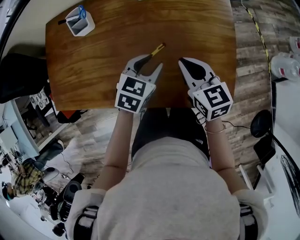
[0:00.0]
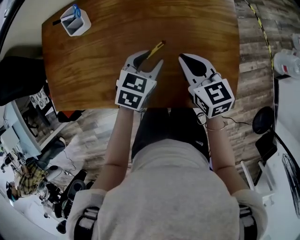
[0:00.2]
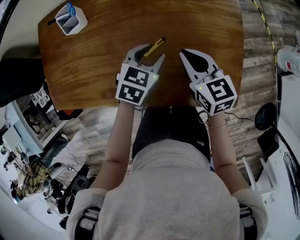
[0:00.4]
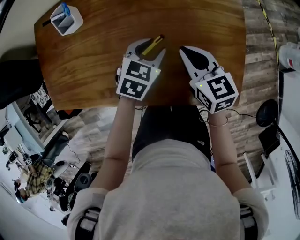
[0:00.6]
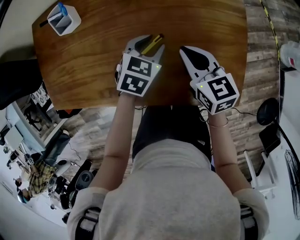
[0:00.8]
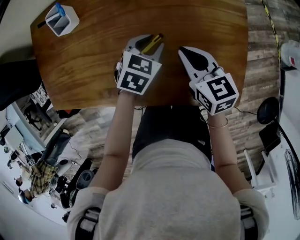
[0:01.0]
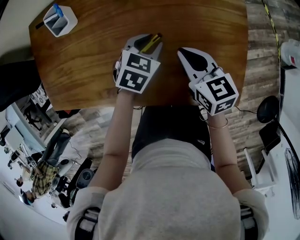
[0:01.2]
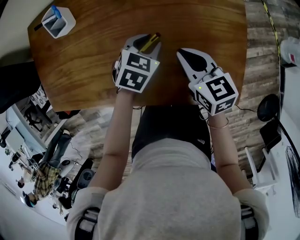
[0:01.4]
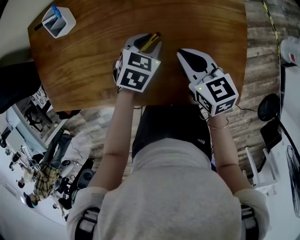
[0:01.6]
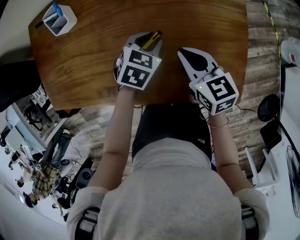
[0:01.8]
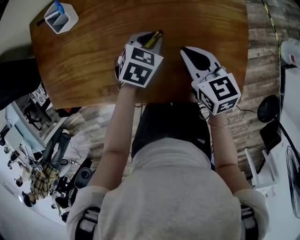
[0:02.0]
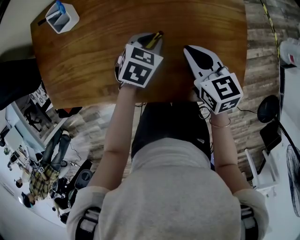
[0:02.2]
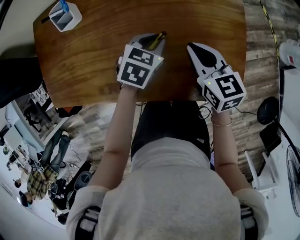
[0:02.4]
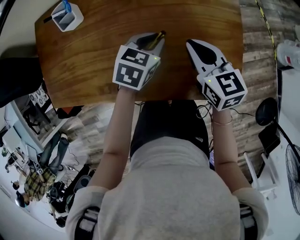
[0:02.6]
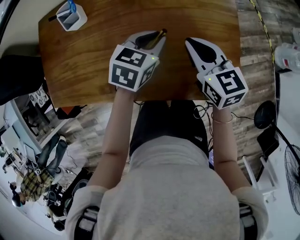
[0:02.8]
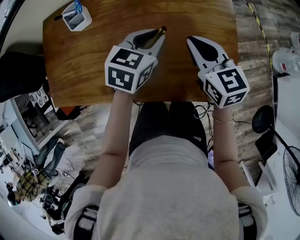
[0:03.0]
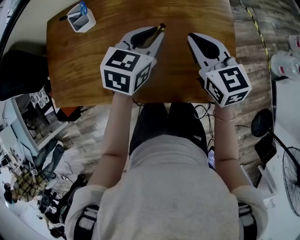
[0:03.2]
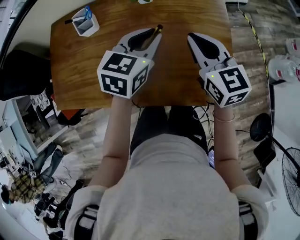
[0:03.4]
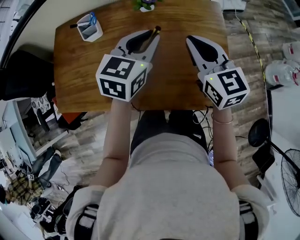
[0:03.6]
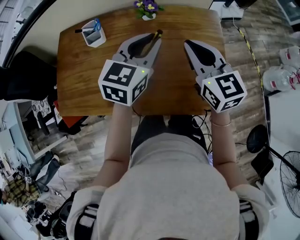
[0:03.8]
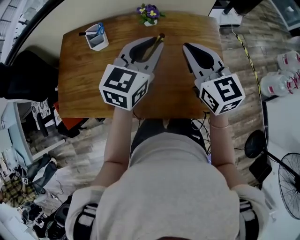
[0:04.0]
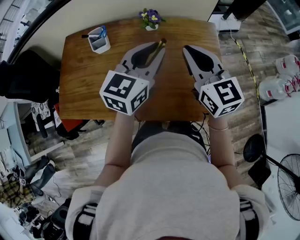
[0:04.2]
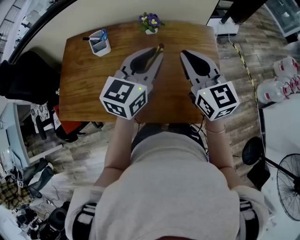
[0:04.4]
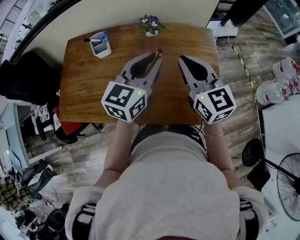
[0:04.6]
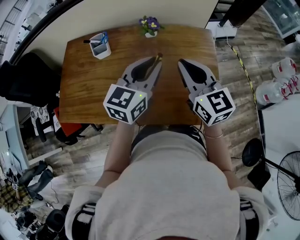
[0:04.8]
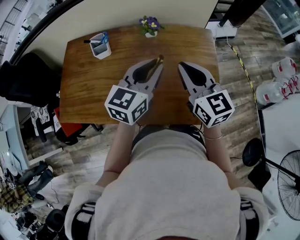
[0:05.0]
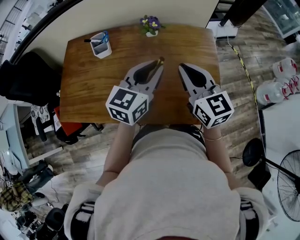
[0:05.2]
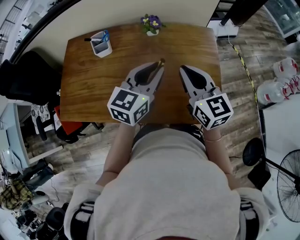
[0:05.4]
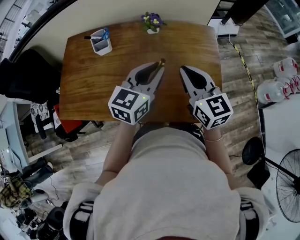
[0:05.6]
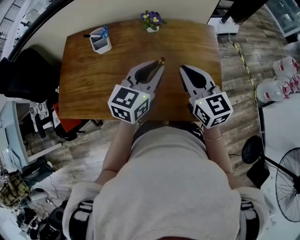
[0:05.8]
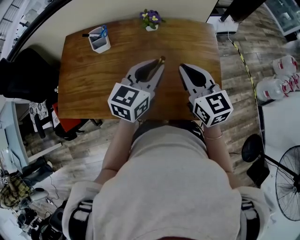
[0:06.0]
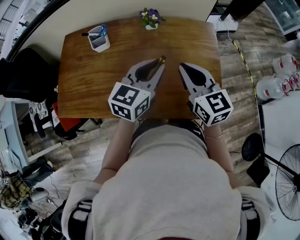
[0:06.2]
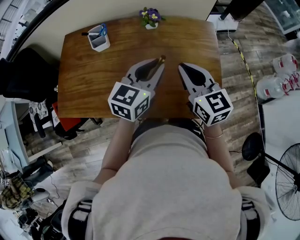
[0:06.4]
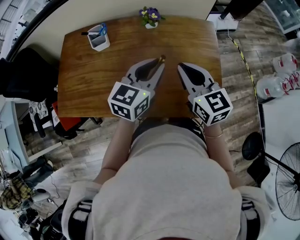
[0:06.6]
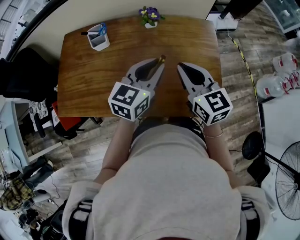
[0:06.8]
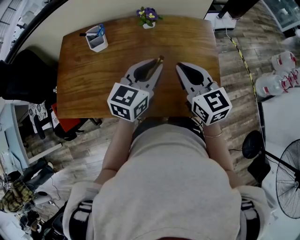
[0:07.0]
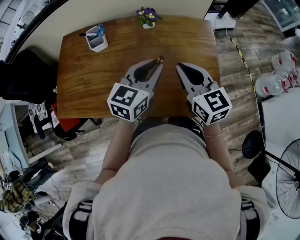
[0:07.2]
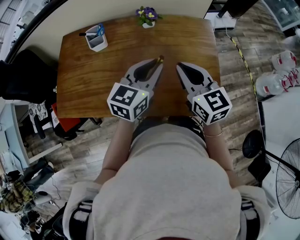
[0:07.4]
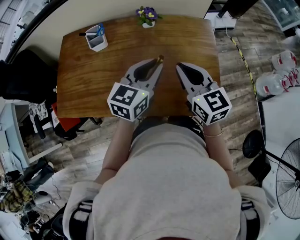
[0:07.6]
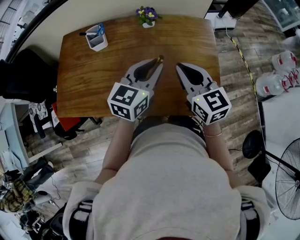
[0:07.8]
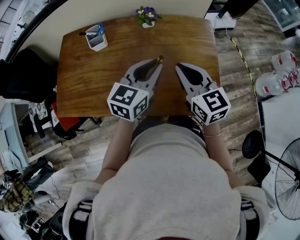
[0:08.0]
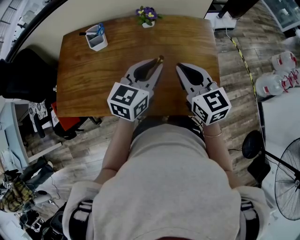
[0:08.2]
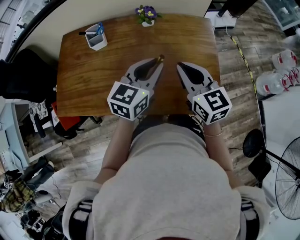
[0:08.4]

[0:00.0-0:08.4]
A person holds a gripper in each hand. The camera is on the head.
0:00.0 to 0:01.4: The grippers both shift downward by some 5 cm.
0:01.4 to 0:02.8: Both grippers move upward, some 10 cm.
0:02.8 to 0:04.2: Both grippers move upward, about 20 cm. The left gripper points its fingers about 30 degrees further upward. Meanwhile the right gripper rotates about 20 degrees.
0:04.2 to 0:05.6: The right gripper changes place by roughly 5 cm; the left gripper goes roughly 5 cm downward.
0:05.6 to 0:07.0: The grippers make only small movements.
0:07.0 to 0:08.4: The two grippers keep their place.

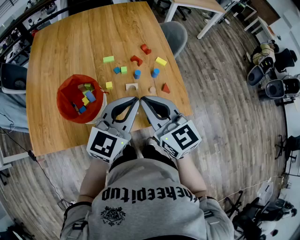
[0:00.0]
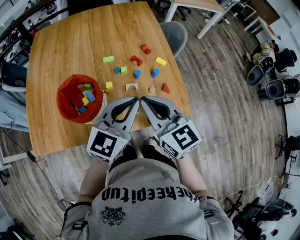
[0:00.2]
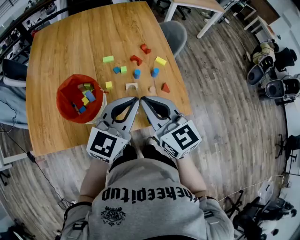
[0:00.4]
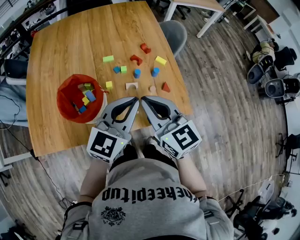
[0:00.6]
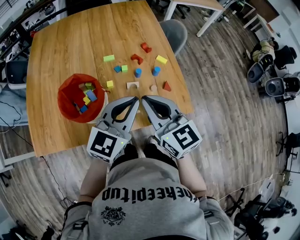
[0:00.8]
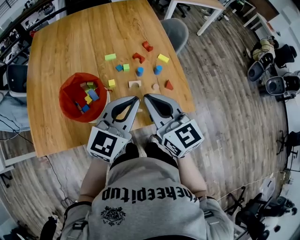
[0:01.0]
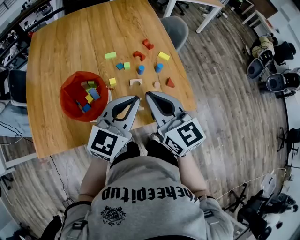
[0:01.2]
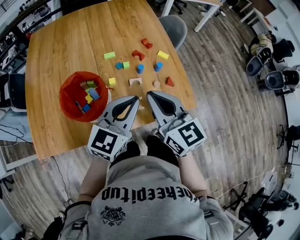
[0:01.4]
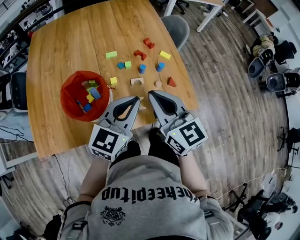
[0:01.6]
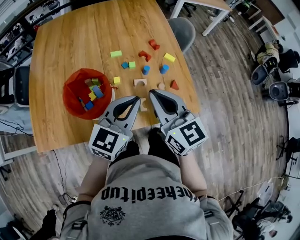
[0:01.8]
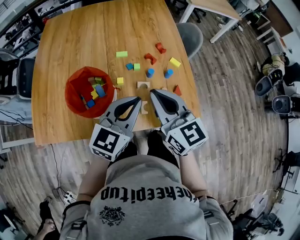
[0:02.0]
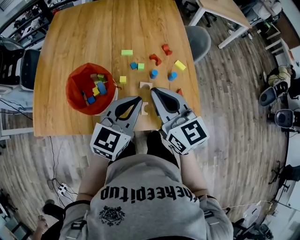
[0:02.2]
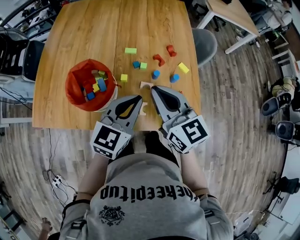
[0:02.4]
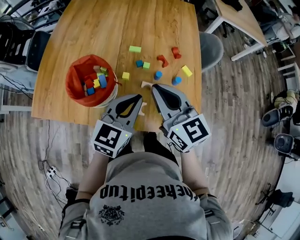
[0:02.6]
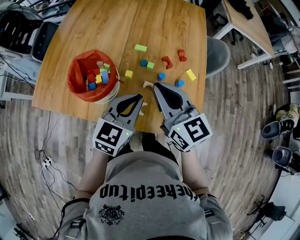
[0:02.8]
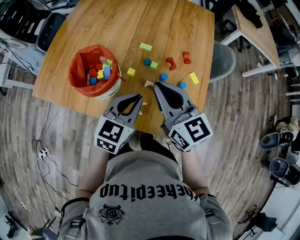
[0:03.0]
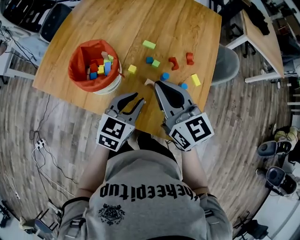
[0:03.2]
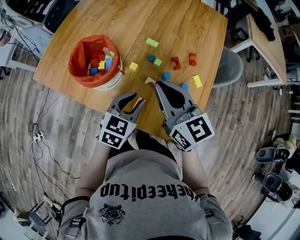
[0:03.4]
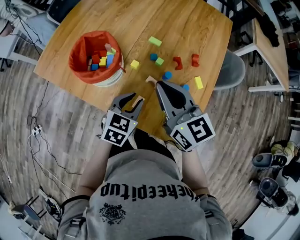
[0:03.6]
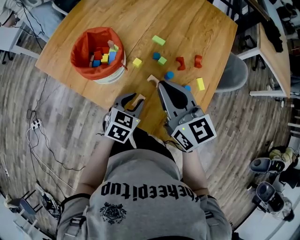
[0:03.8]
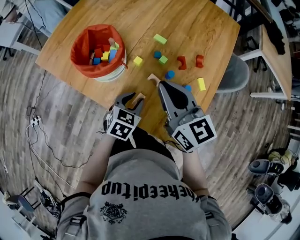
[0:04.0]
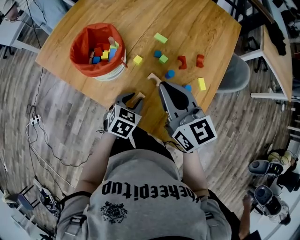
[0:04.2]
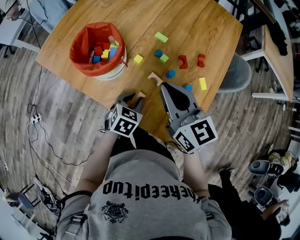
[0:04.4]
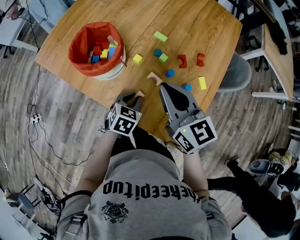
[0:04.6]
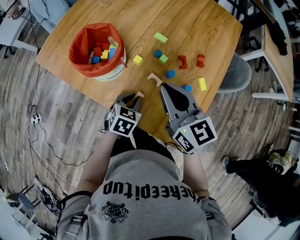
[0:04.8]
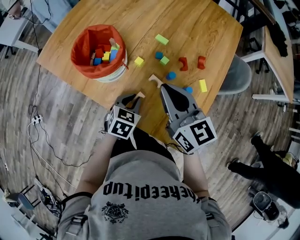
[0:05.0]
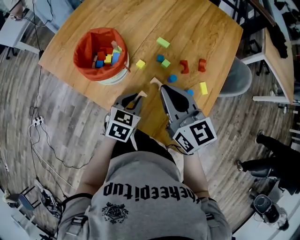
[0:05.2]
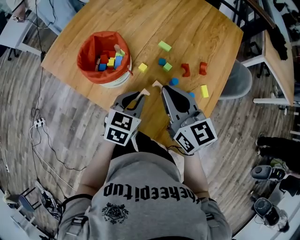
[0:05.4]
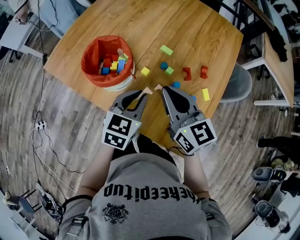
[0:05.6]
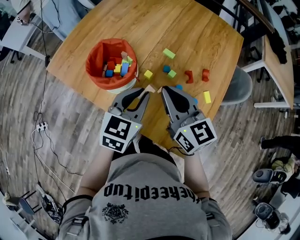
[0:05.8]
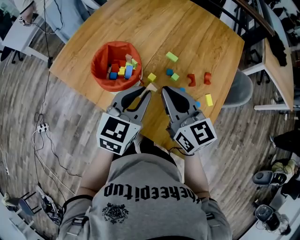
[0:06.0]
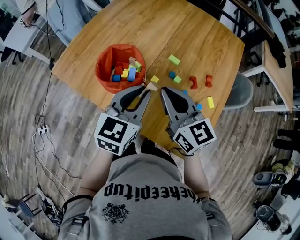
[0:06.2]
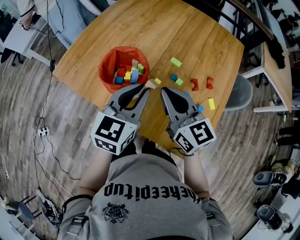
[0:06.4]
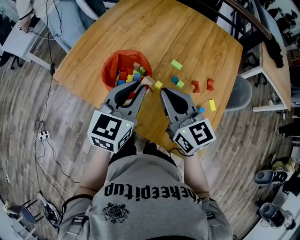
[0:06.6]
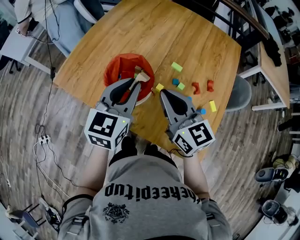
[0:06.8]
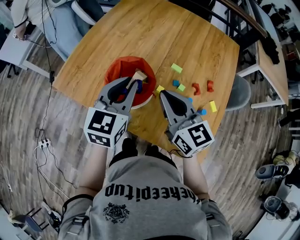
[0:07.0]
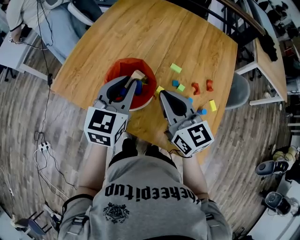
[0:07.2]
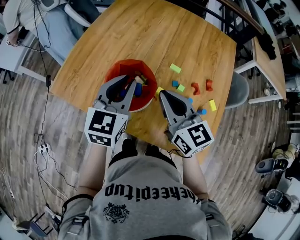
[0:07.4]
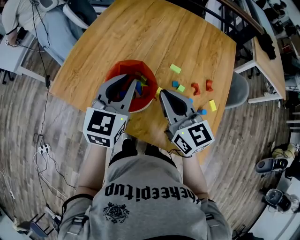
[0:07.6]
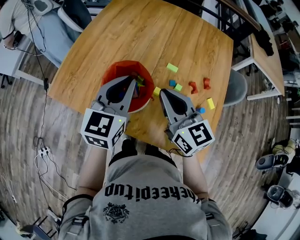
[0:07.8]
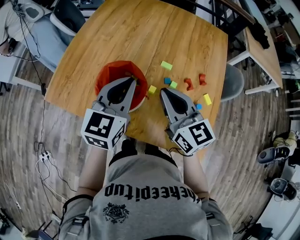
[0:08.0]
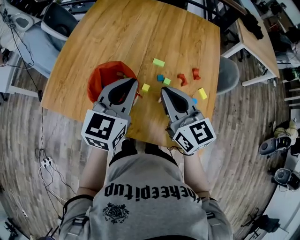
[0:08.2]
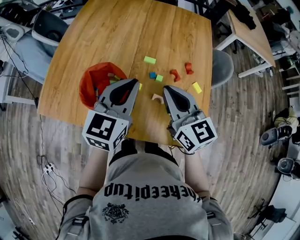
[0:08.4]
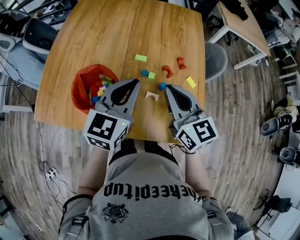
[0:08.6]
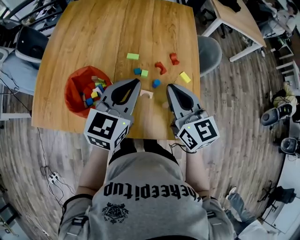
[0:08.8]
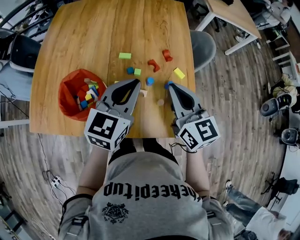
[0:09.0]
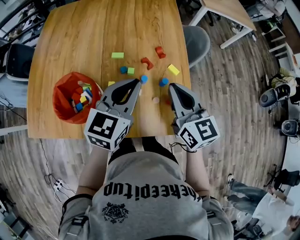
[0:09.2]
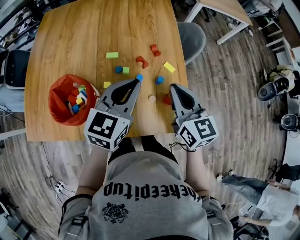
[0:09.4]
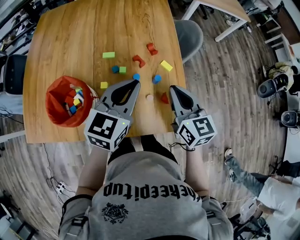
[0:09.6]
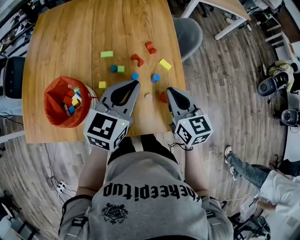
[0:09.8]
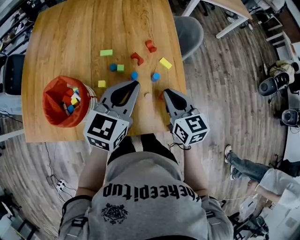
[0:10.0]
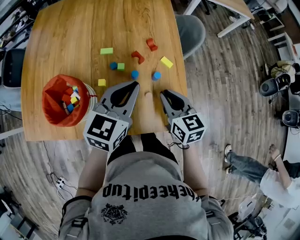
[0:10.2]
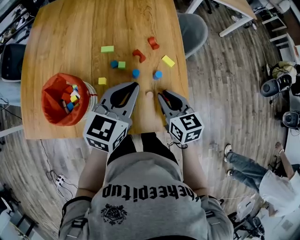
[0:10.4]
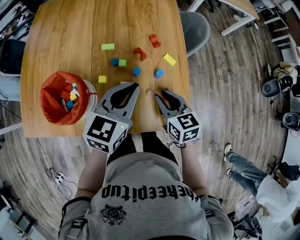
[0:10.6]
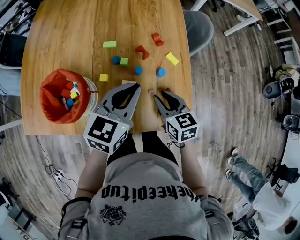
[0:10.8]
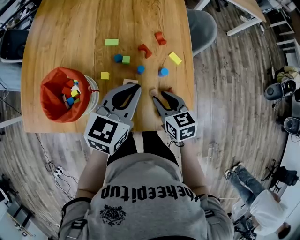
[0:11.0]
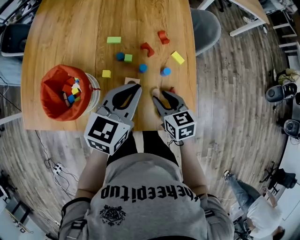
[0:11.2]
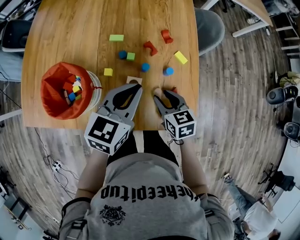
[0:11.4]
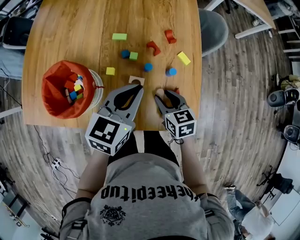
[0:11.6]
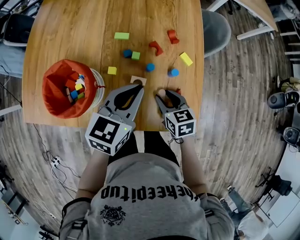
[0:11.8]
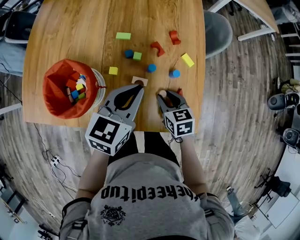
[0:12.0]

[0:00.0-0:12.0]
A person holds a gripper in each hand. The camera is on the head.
0:00.0 to 0:01.6: There are only small adjustments of the grippers.
0:01.6 to 0:03.0: The right gripper moves about 5 cm, and swivels about 30 degrees. Meanwhile the left gripper moves downward, roughly 5 cm, and turns by some 30 degrees.
0:03.0 to 0:04.4: The left gripper goes about 15 cm downward, changes its angle by approximately 30 degrees, and opens.
0:04.4 to 0:06.0: The right gripper heads to the left, covering some 5 cm, while the left gripper shifts some 20 cm upward, and tips its fingers upward by some 30 degrees.
0:06.0 to 0:07.6: The left gripper goes roughly 15 cm to the left and forward. The right gripper is displaced to the left by about 5 cm.
0:07.6 to 0:09.0: The right gripper changes place by some 20 cm, and rotates some 30 degrees. The left gripper shifts by some 20 cm, and changes its angle by roughly 30 degrees.
0:09.0 to 0:10.4: The left gripper heads to the right, covering roughly 5 cm; the right gripper heads downward and to the right, covering about 15 cm, and turns by some 20 degrees.
0:10.4 to 0:12.0: The left gripper shifts by some 5 cm. The right gripper goes about 10 cm downward.

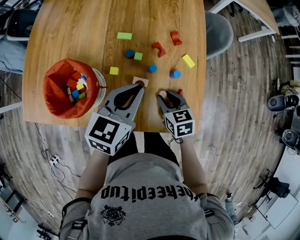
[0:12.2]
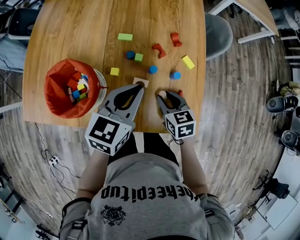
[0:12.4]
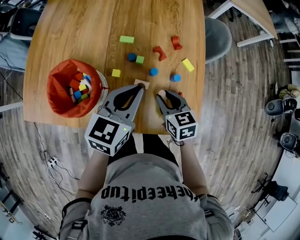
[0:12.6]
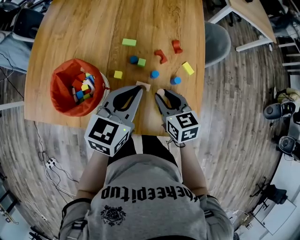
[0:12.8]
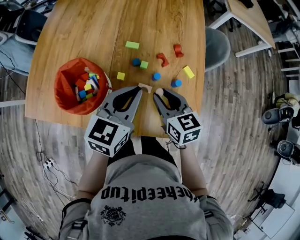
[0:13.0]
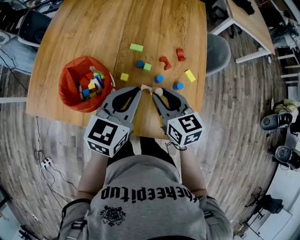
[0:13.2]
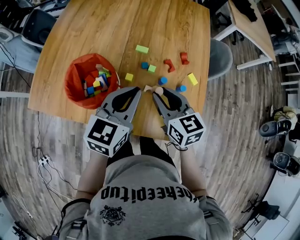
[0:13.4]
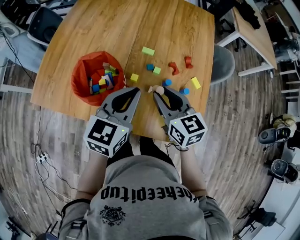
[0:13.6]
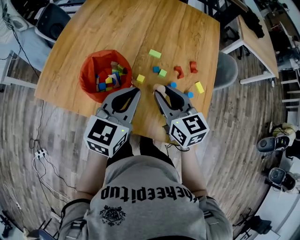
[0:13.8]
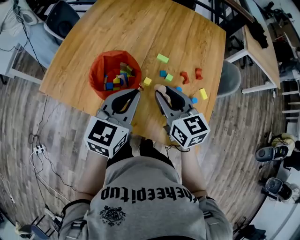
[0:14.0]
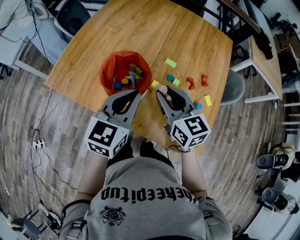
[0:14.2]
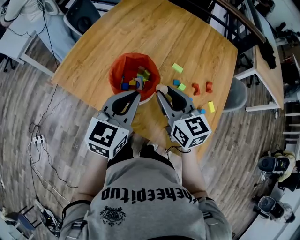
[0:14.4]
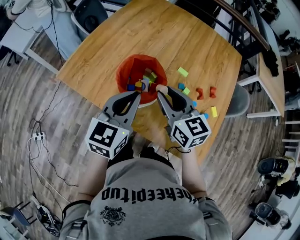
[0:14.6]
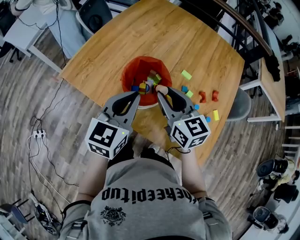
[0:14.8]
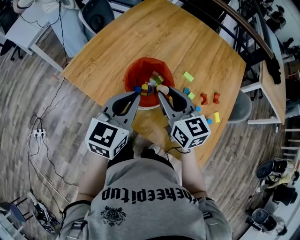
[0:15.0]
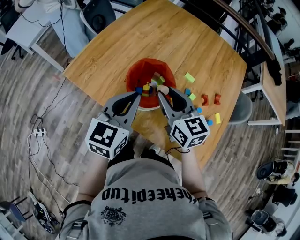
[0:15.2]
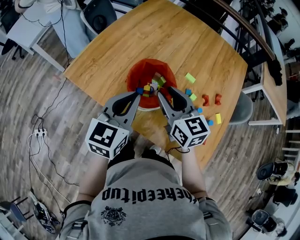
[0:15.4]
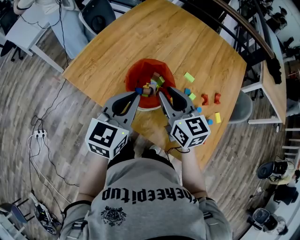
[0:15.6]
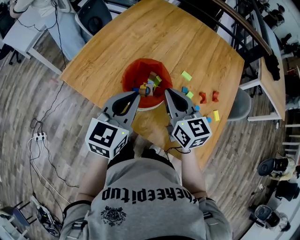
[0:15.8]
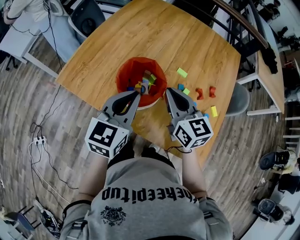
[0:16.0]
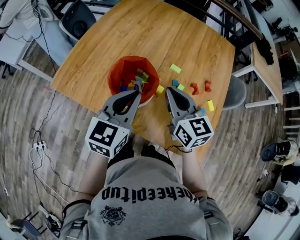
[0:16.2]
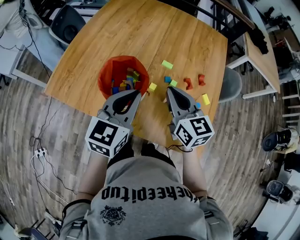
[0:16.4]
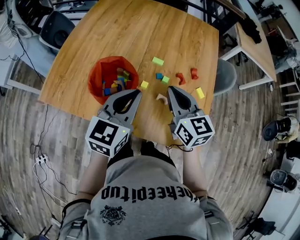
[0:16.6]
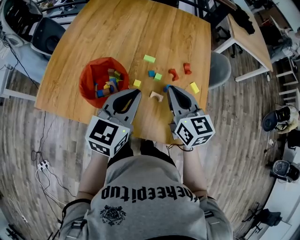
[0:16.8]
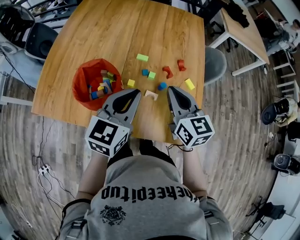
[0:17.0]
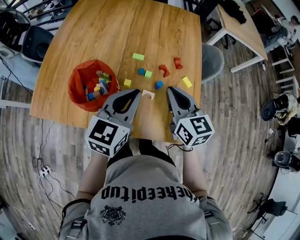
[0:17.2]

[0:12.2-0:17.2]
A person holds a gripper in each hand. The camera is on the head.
0:12.2 to 0:13.8: The right gripper goes some 20 cm upward and to the left, and swivels roughly 30 degrees. Meanwhile the left gripper goes approximately 10 cm to the left and upward.
0:13.8 to 0:15.6: The two grippers go approximately 15 cm to the left.
0:15.6 to 0:17.2: The left gripper ends up some 20 cm from where it was, and rotates some 30 degrees; the right gripper ends up approximately 20 cm from where it was, swivels roughly 30 degrees, and closes.
